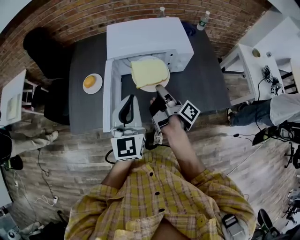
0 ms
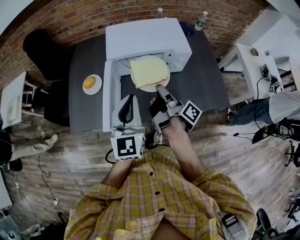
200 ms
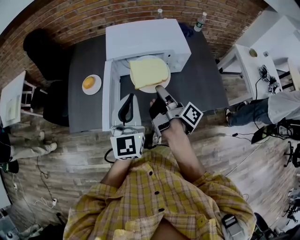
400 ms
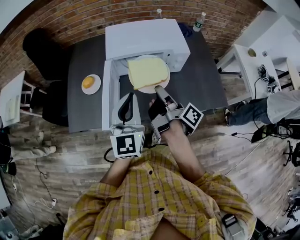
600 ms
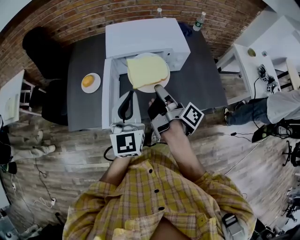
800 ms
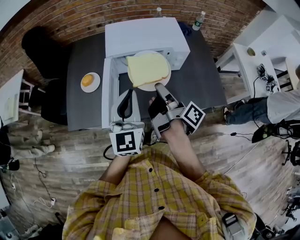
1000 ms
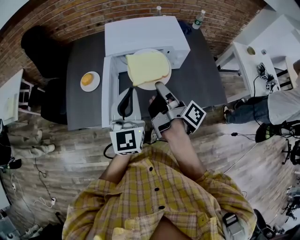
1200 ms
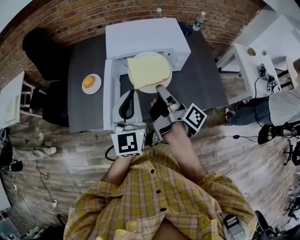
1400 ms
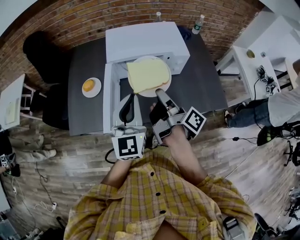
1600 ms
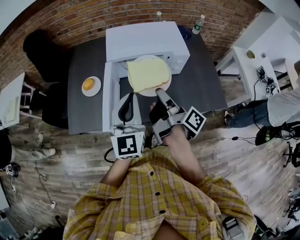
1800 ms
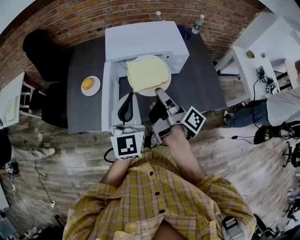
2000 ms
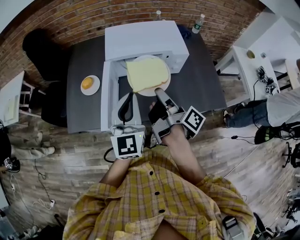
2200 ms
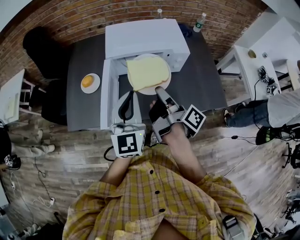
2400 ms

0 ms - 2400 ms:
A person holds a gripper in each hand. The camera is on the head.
0 ms - 1200 ms: The right gripper goes some 5 cm upward.
1200 ms - 2400 ms: Both grippers stay put.

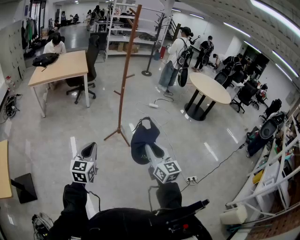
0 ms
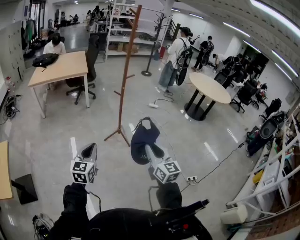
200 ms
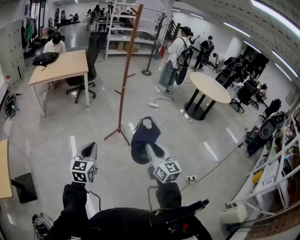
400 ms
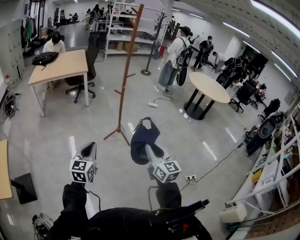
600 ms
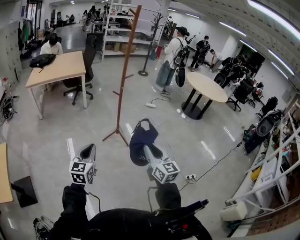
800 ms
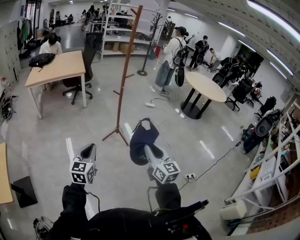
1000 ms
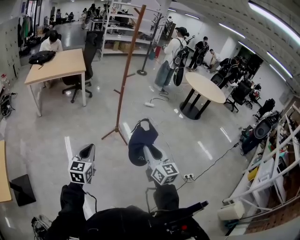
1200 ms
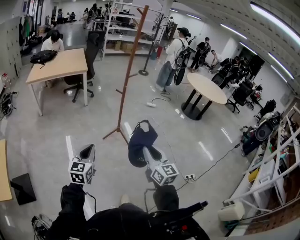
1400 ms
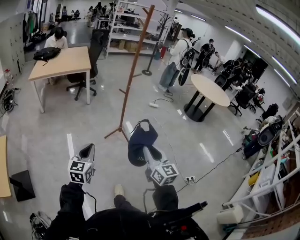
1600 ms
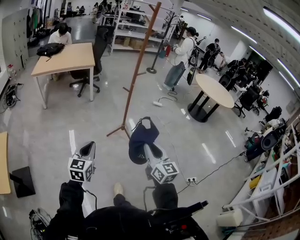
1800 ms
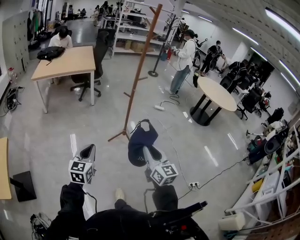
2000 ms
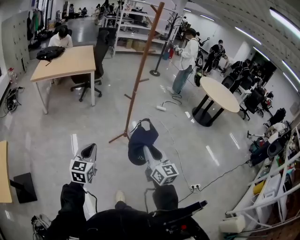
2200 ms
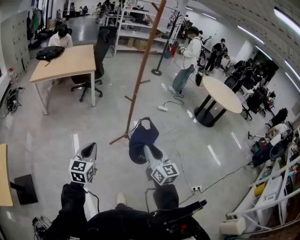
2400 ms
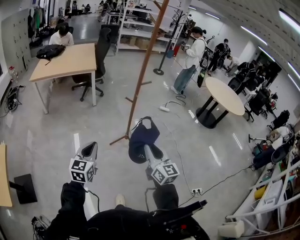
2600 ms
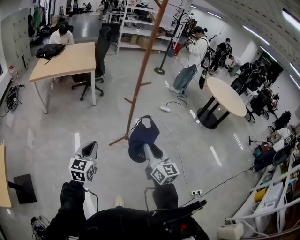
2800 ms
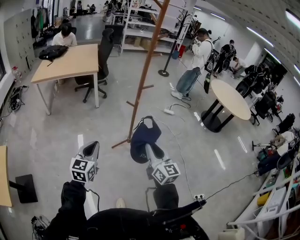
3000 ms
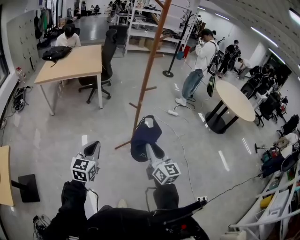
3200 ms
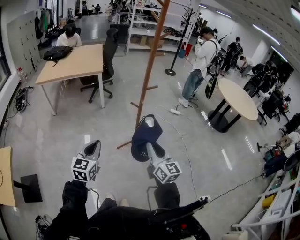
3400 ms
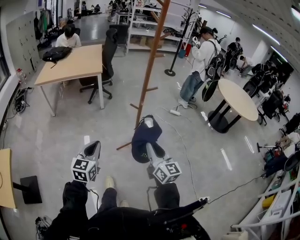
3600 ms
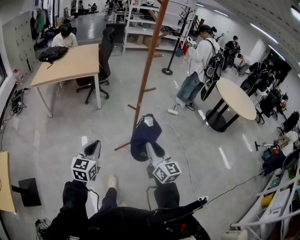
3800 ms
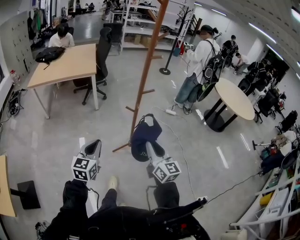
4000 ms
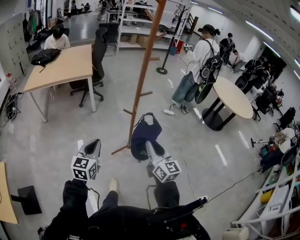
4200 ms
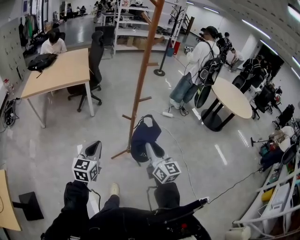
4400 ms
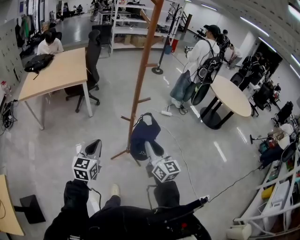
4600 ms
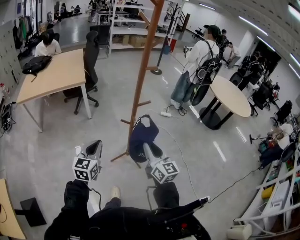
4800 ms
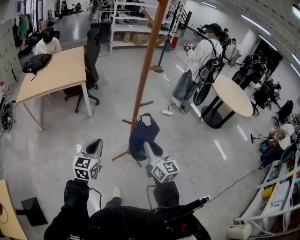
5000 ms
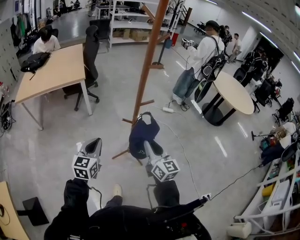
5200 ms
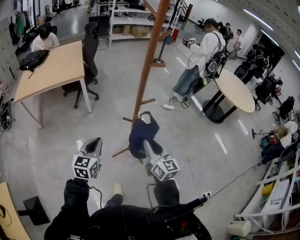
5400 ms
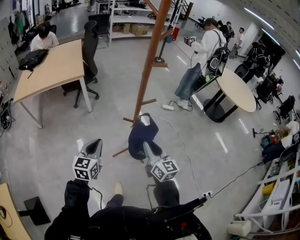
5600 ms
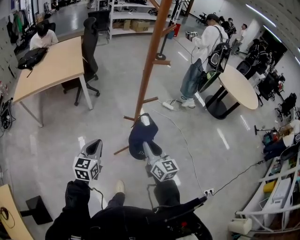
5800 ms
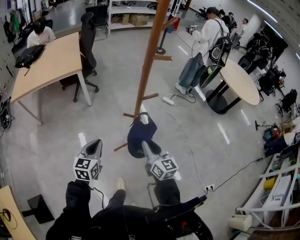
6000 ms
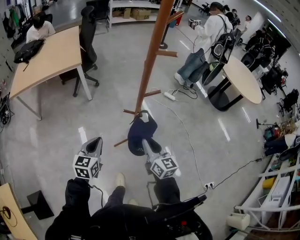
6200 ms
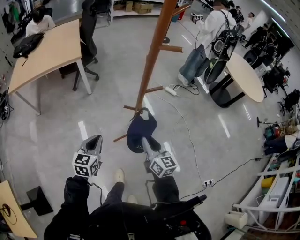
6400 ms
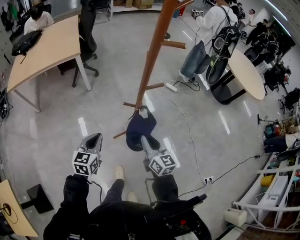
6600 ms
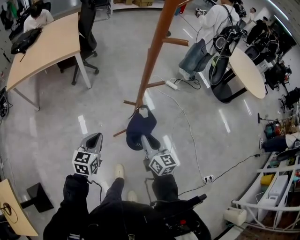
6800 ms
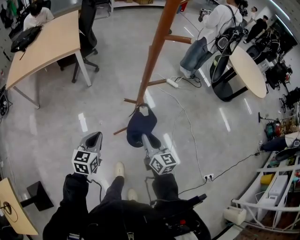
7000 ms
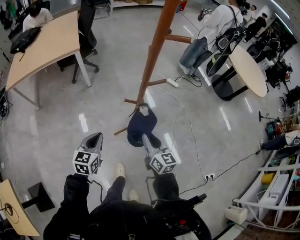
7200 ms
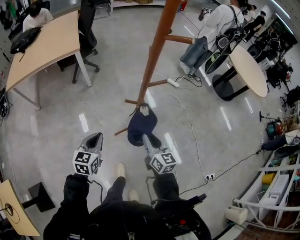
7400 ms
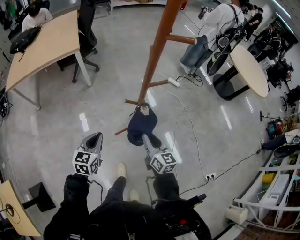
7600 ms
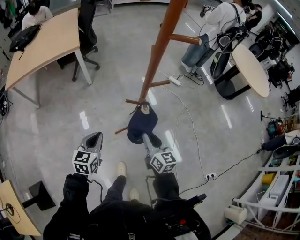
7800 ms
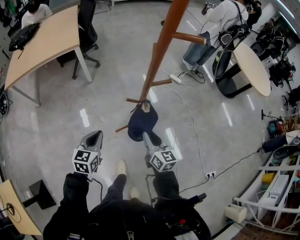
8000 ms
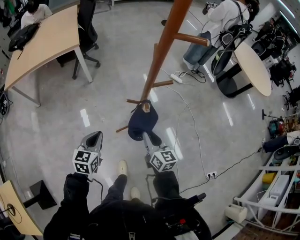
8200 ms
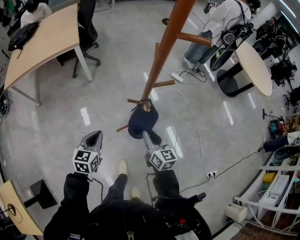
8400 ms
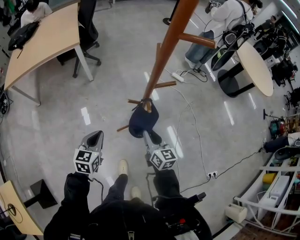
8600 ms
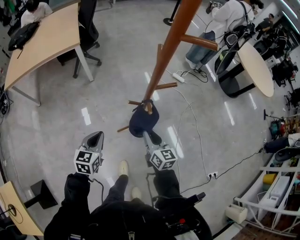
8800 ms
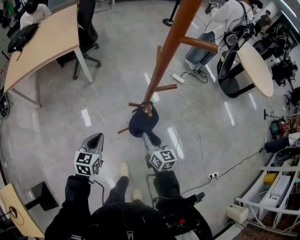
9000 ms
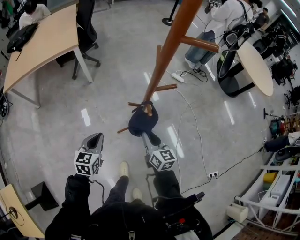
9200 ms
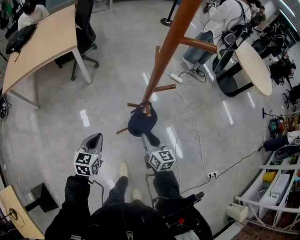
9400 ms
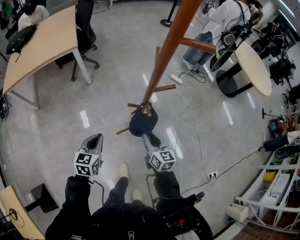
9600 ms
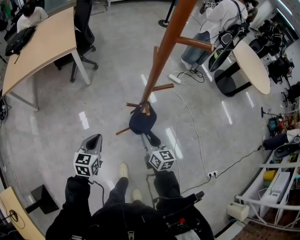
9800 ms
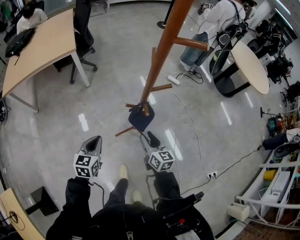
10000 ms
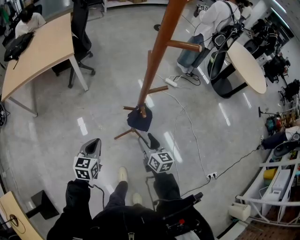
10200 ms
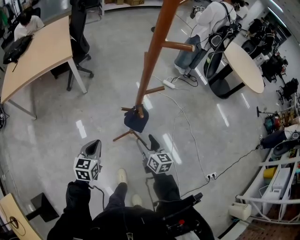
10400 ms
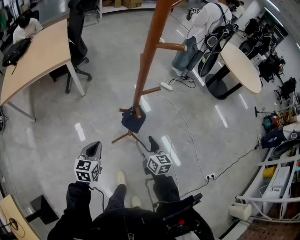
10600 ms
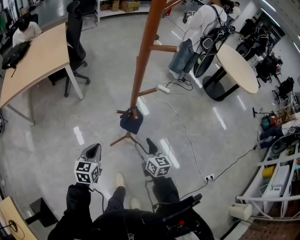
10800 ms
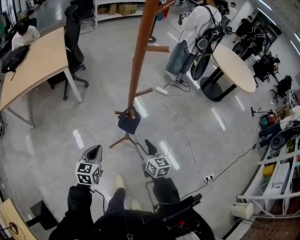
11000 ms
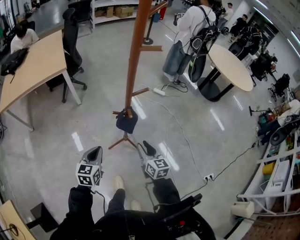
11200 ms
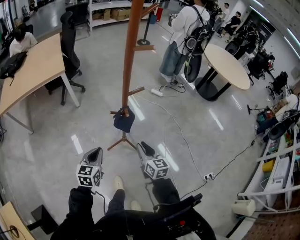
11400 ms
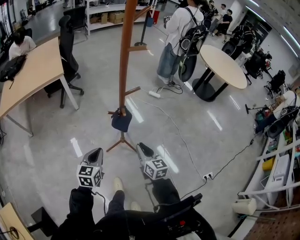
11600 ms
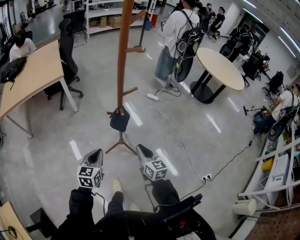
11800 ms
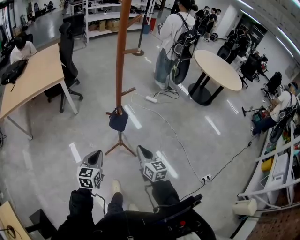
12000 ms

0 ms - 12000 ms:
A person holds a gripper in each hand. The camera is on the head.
0 ms - 1600 ms: Both grippers travel together to the left, roughly 5 cm.
1600 ms - 3000 ms: The grippers both shift forward by roughly 25 cm.
3000 ms - 4400 ms: Both grippers travel together forward, about 15 cm.
4400 ms - 6000 ms: Both grippers travel together forward and downward, roughly 15 cm.
6000 ms - 7600 ms: Both grippers move downward, approximately 5 cm.
7600 ms - 9000 ms: The right gripper moves some 5 cm.
9000 ms - 10400 ms: The right gripper opens.
10400 ms - 12000 ms: The right gripper goes some 15 cm backward, upward and to the right, and closes up. Meanwhile the left gripper heads backward, to the right and upward, covering roughly 15 cm.

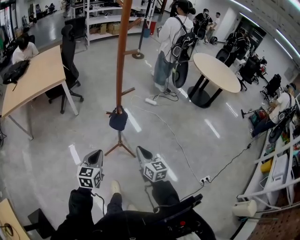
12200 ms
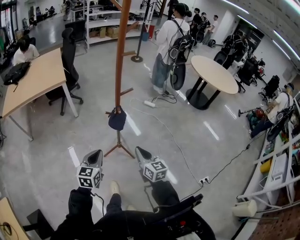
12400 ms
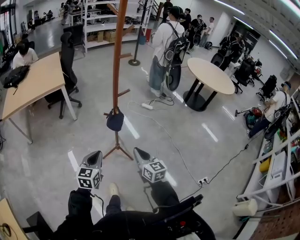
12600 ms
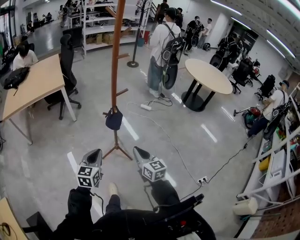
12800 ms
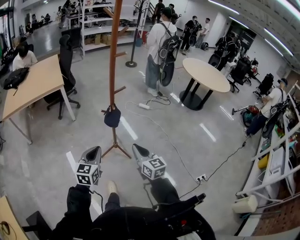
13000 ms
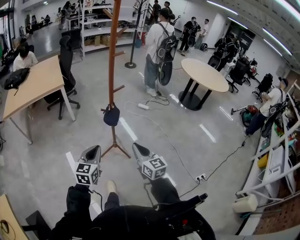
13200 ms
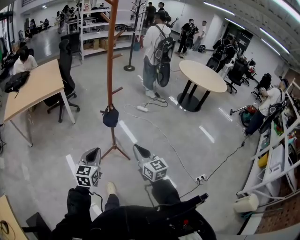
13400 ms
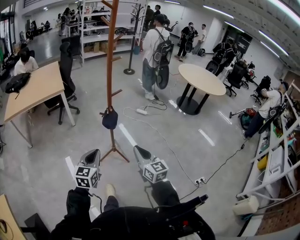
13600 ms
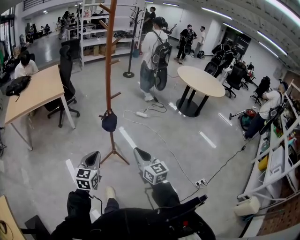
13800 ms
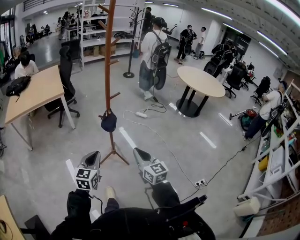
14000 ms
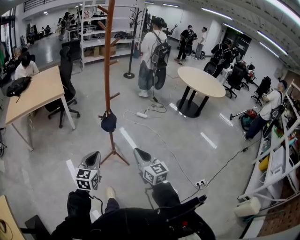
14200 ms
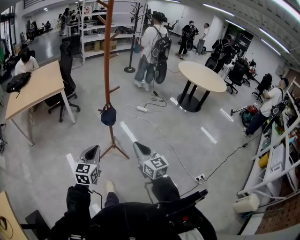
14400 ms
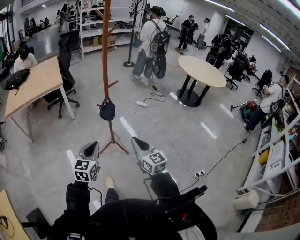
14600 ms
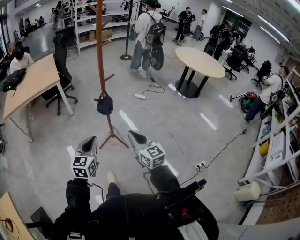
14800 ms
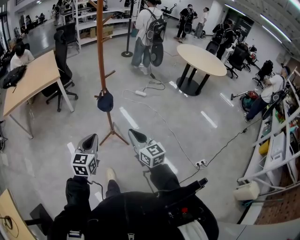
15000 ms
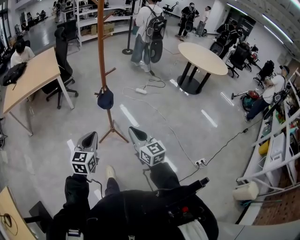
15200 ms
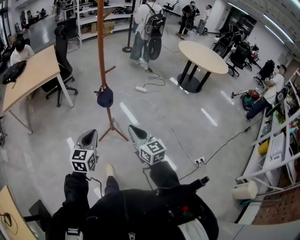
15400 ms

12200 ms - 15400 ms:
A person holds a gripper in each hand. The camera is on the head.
12200 ms - 13800 ms: Both grippers travel together backward and upward, roughly 15 cm.
13800 ms - 15400 ms: The grippers move only a little.

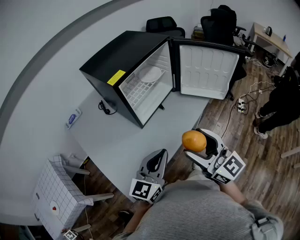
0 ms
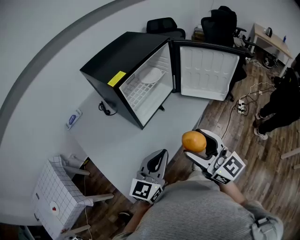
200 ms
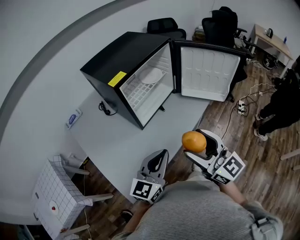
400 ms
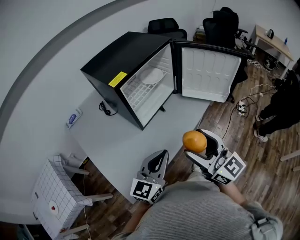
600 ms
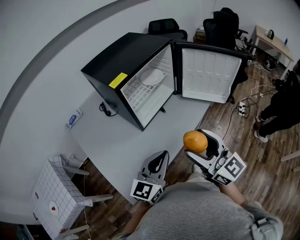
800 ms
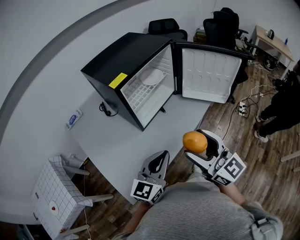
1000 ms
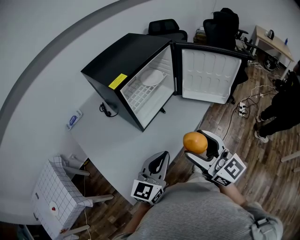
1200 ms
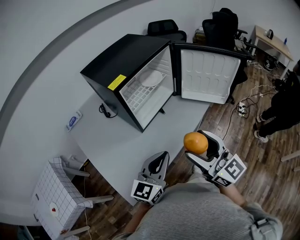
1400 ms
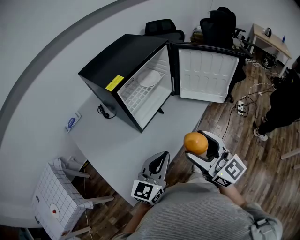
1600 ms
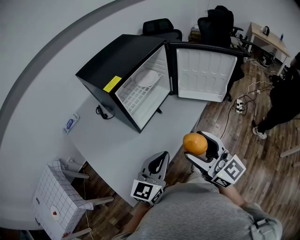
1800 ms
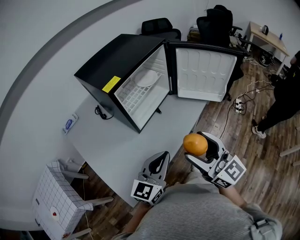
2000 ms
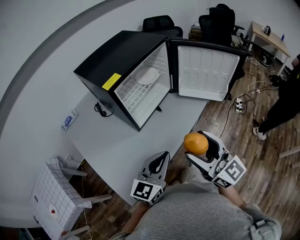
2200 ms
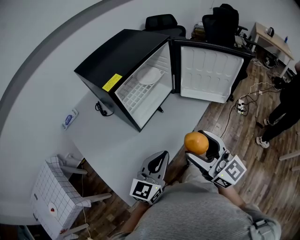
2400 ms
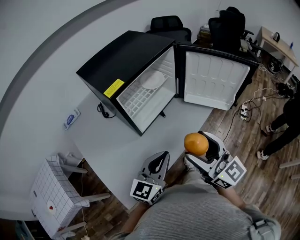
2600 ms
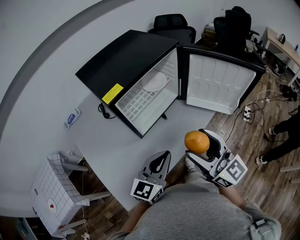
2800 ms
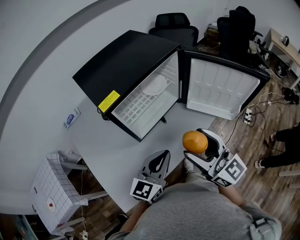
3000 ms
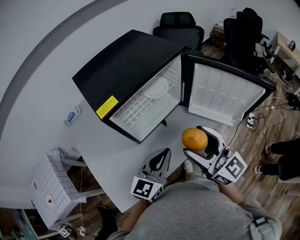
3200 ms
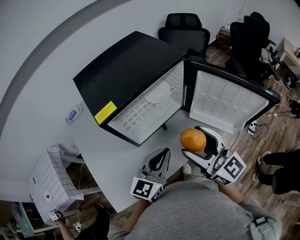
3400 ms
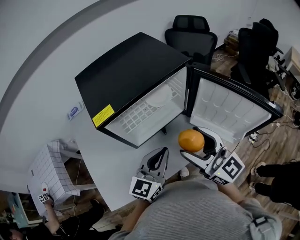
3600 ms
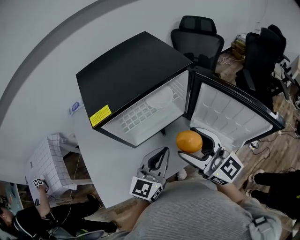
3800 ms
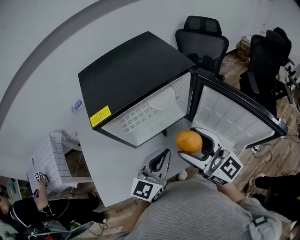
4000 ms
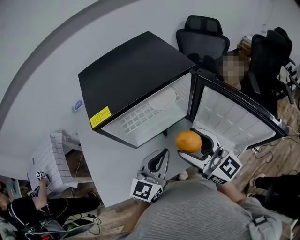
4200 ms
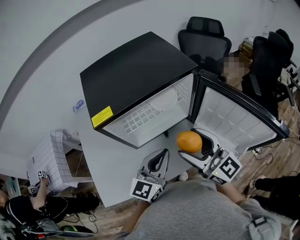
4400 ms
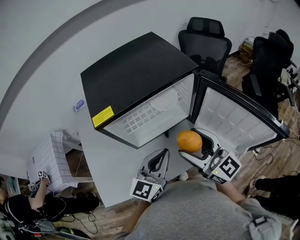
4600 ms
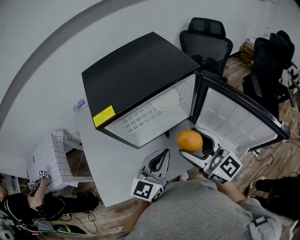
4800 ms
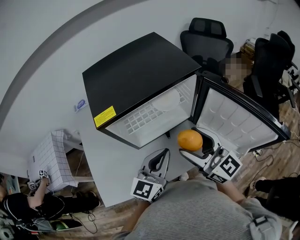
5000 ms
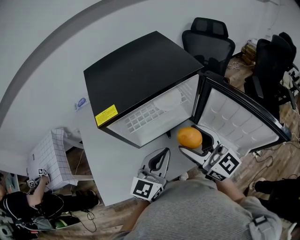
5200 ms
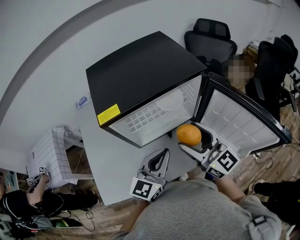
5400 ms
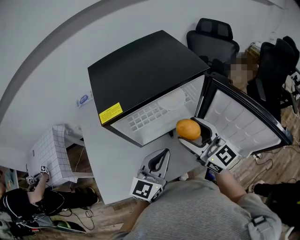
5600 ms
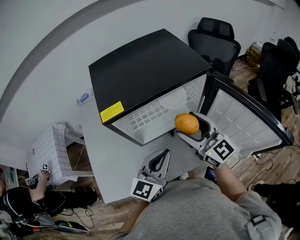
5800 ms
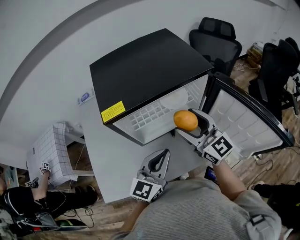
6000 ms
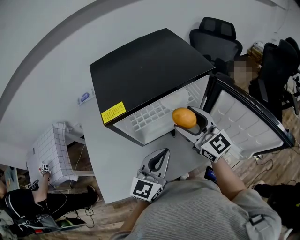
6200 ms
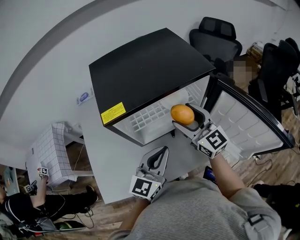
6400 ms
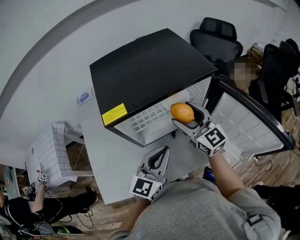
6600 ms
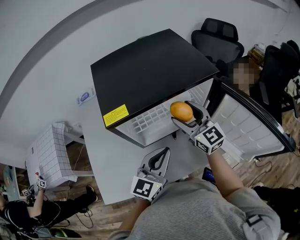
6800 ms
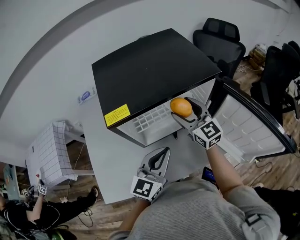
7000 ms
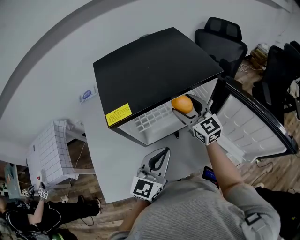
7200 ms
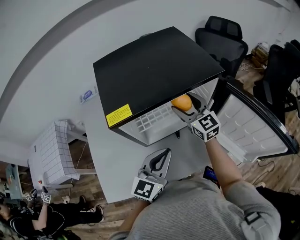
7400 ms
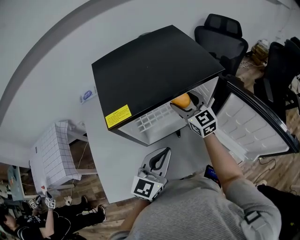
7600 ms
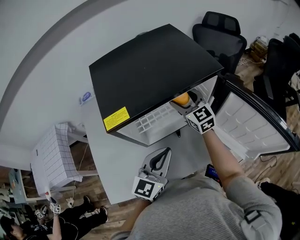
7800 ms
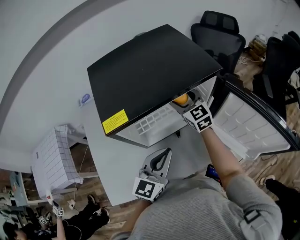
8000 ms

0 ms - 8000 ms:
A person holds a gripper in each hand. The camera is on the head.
0 ms - 1600 ms: The grippers stay close to where they were, moving slightly.
1600 ms - 3200 ms: Both grippers travel together forward, approximately 15 cm.
3200 ms - 4800 ms: The left gripper travels forward and to the right by roughly 10 cm; the right gripper moves forward, some 10 cm.
4800 ms - 6400 ms: The right gripper heads forward, covering approximately 10 cm.
6400 ms - 8000 ms: The right gripper heads forward and downward, covering some 15 cm.
